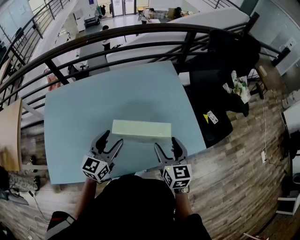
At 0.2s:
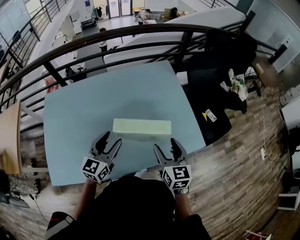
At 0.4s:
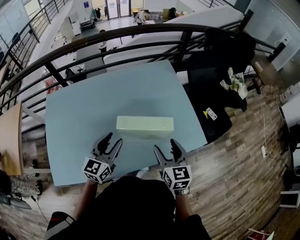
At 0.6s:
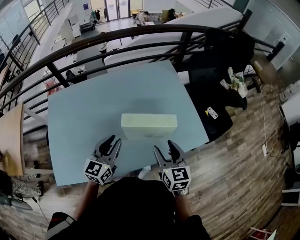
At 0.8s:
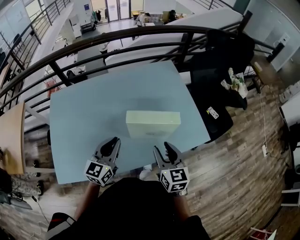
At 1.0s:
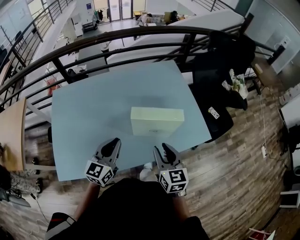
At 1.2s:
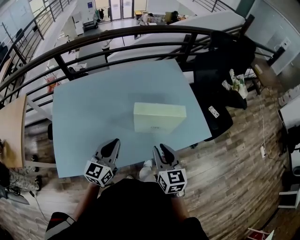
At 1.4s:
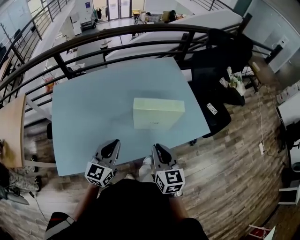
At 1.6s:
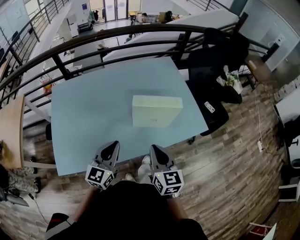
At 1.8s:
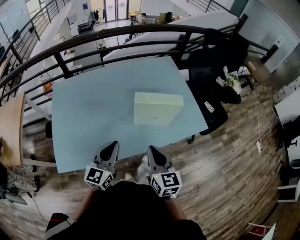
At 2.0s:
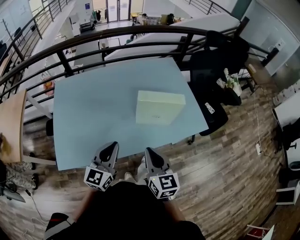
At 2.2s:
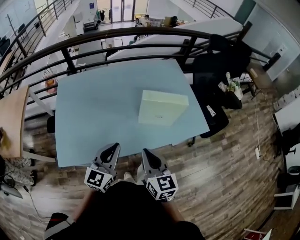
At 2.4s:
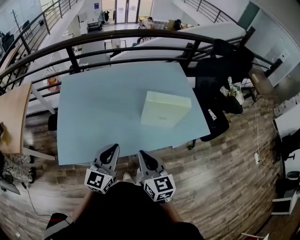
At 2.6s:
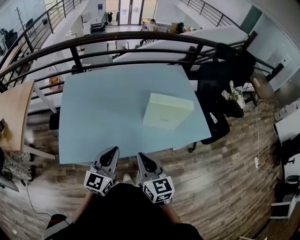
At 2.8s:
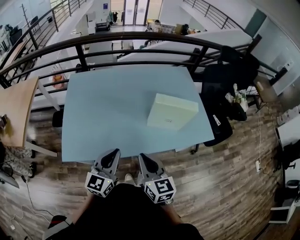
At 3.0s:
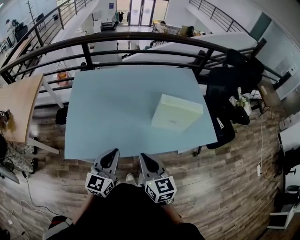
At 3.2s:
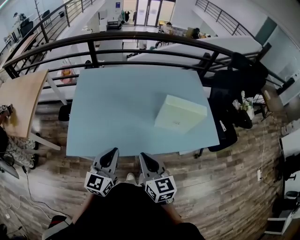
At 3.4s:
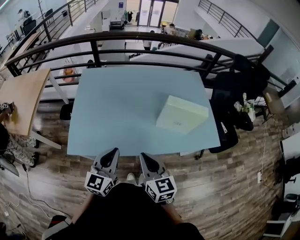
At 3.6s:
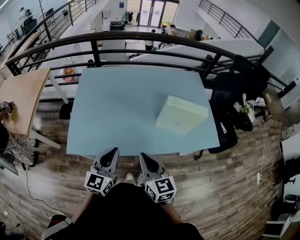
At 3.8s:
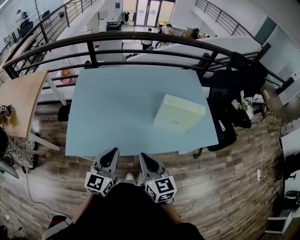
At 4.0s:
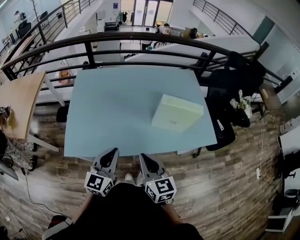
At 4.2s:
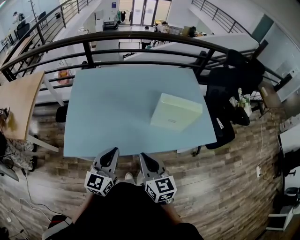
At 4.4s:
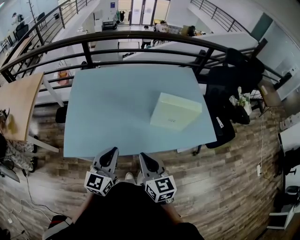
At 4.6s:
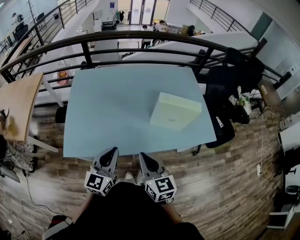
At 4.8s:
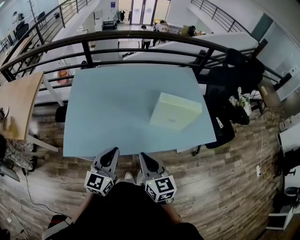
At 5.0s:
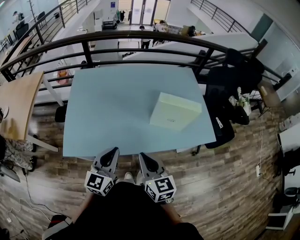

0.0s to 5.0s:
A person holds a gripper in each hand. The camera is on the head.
0.0s to 1.6s: The left gripper moves backward, approximately 15 cm, and closes up. The right gripper travels backward and to the left by roughly 20 cm, and closes its fingers.
1.6s to 3.4s: The grippers both shift to the left and backward by roughly 15 cm. The right gripper changes its angle by some 20 degrees.
3.4s to 5.0s: The grippers stay close to where they were, moving slightly.

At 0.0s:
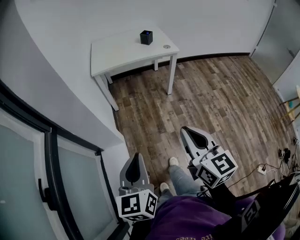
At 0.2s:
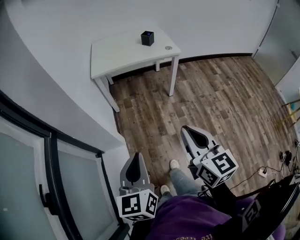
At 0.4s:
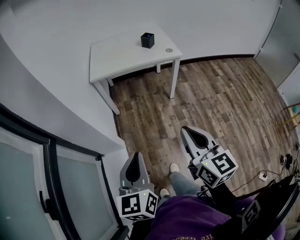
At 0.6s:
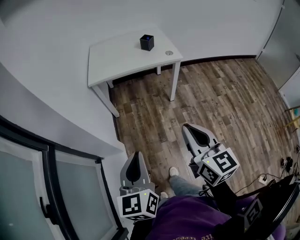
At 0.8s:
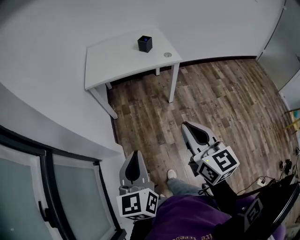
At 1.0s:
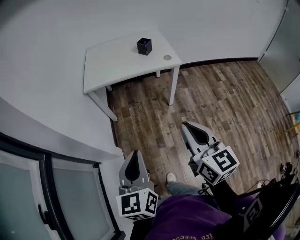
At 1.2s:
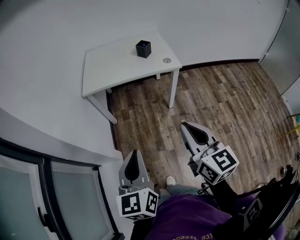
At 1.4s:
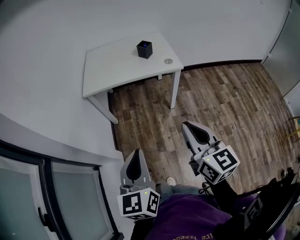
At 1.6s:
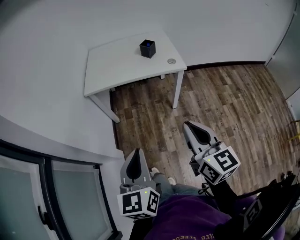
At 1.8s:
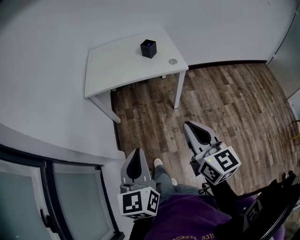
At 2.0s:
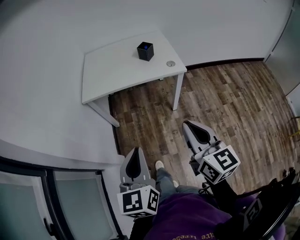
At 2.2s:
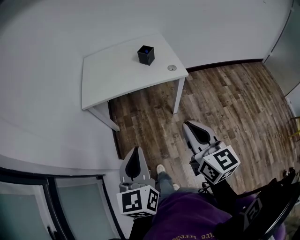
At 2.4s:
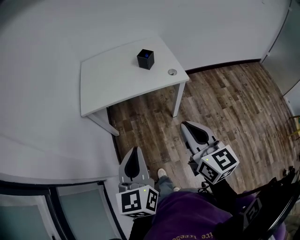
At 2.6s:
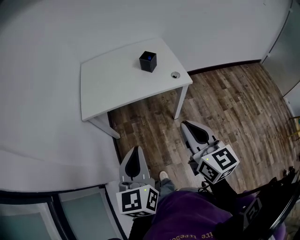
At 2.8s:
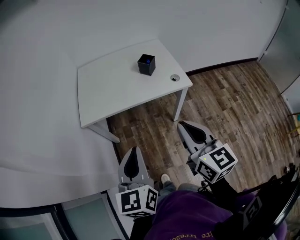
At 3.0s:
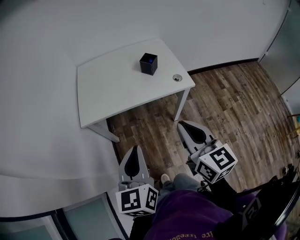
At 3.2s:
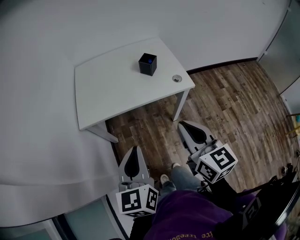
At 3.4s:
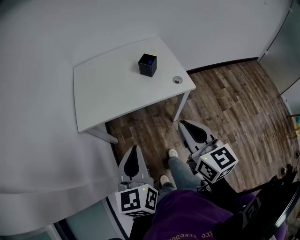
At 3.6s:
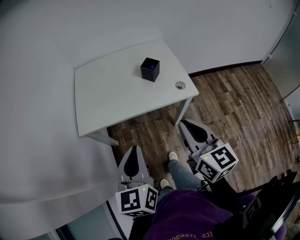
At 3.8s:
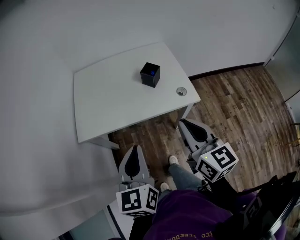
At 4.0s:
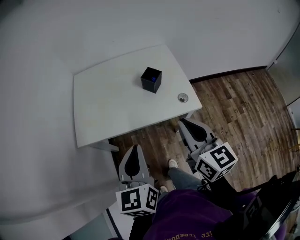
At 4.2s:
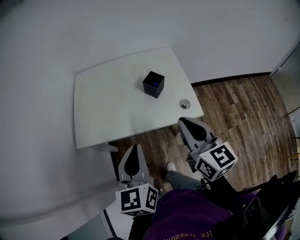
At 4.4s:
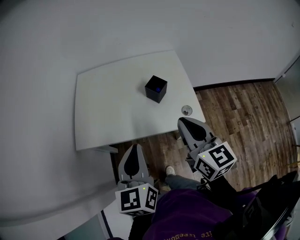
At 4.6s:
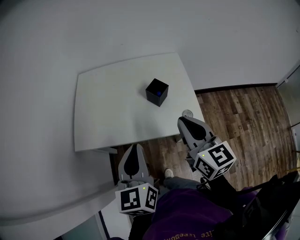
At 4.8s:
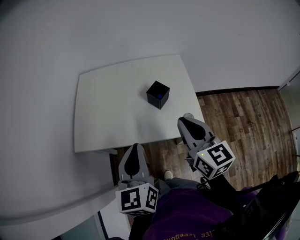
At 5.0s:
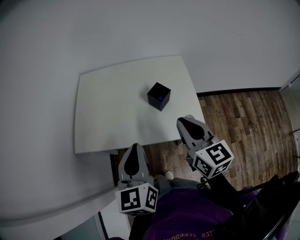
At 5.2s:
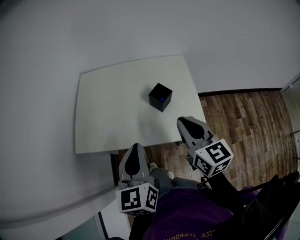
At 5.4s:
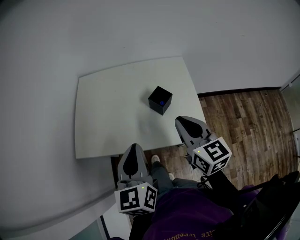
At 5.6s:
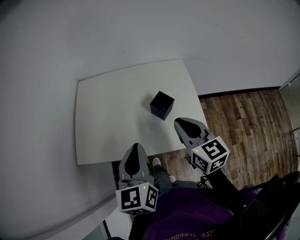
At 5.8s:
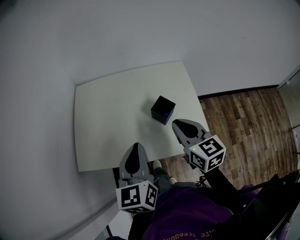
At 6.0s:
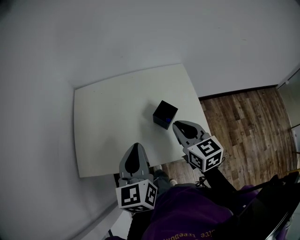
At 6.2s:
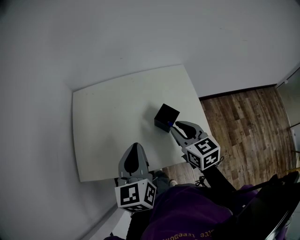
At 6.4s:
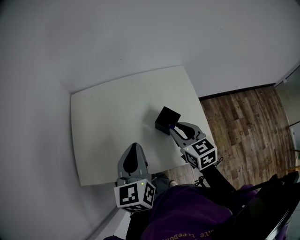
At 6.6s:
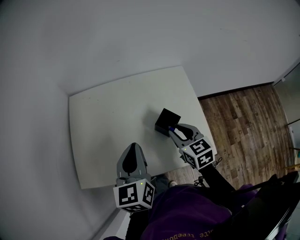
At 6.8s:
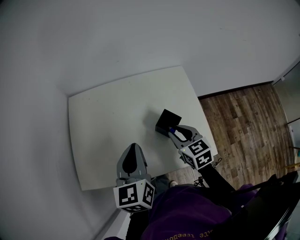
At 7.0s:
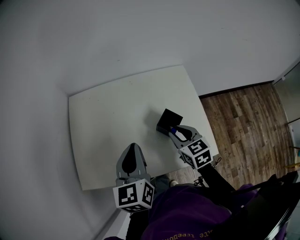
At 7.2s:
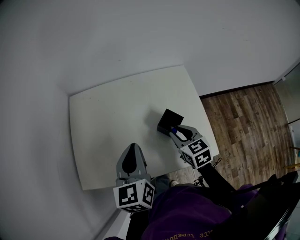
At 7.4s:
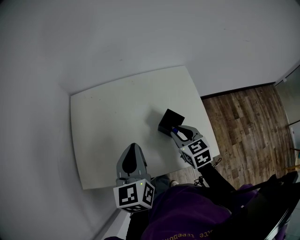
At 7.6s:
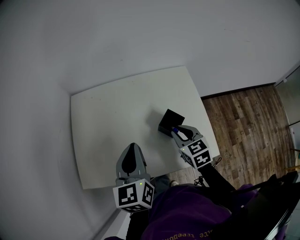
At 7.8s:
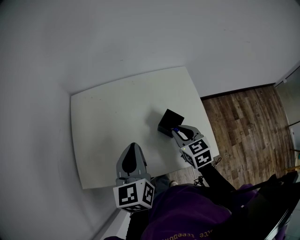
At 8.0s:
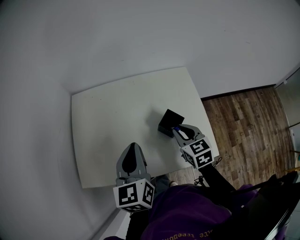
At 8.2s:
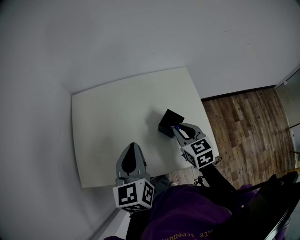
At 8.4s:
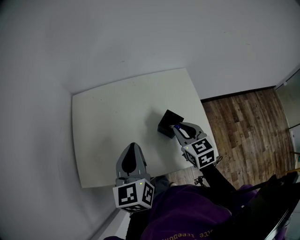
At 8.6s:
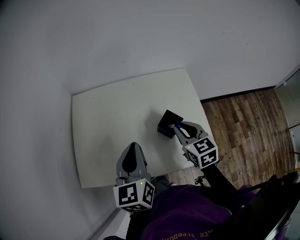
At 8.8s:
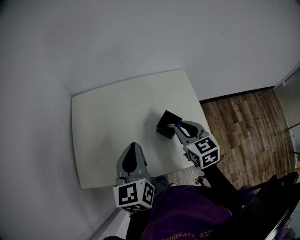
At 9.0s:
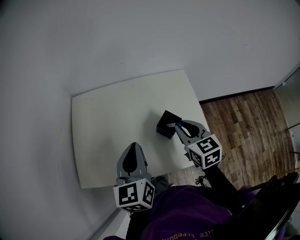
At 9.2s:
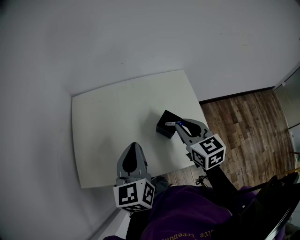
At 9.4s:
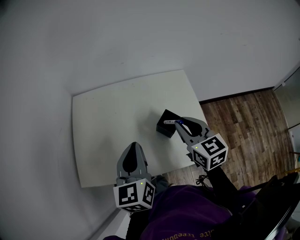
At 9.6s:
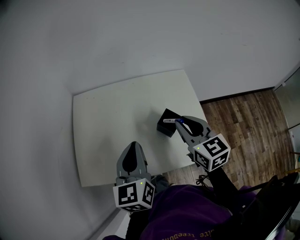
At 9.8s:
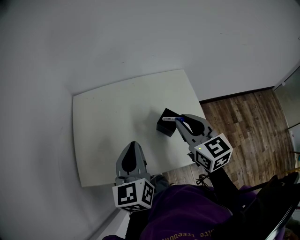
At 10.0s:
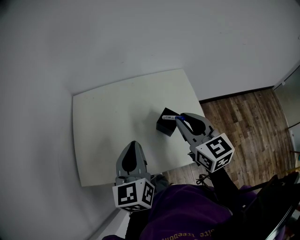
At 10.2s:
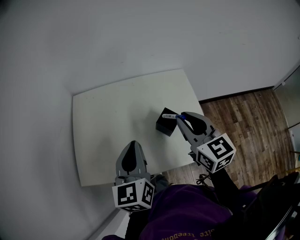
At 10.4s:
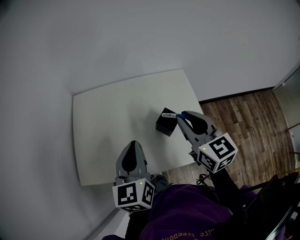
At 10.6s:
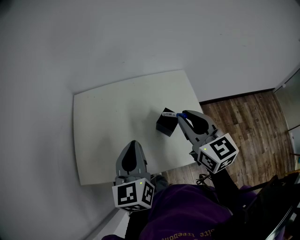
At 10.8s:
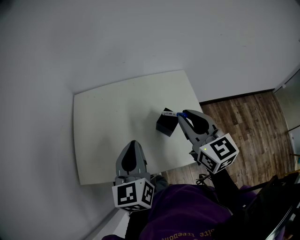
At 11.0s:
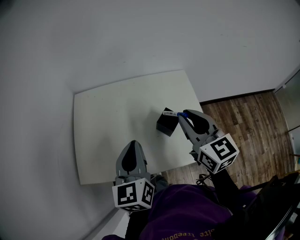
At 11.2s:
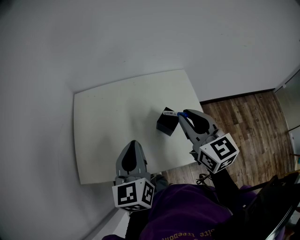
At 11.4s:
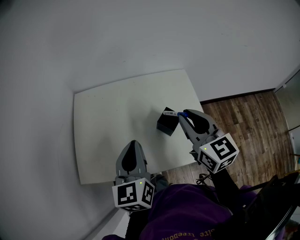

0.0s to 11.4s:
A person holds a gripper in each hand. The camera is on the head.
0.0s to 1.4s: Both grippers travel together forward and to the right, some 25 cm.
1.4s to 2.8s: Both grippers travel together forward, approximately 20 cm.
2.8s to 4.2s: Both grippers travel together forward, about 20 cm.
4.2s to 5.6s: Both grippers travel together forward, about 15 cm.
5.6s to 7.2s: The left gripper goes some 15 cm forward; the right gripper moves downward and forward, roughly 15 cm, swivels about 20 degrees, and opens its fingers.
7.2s to 8.6s: The grippers stay close to where they were, moving slightly.
8.6s to 10.0s: The right gripper goes some 10 cm upward.
10.0s to 11.4s: The grippers stay close to where they were, moving slightly.

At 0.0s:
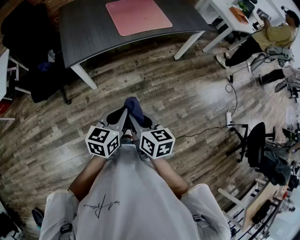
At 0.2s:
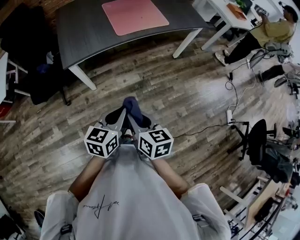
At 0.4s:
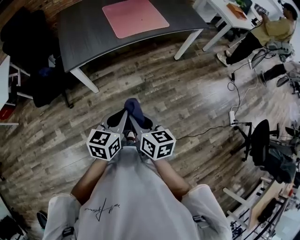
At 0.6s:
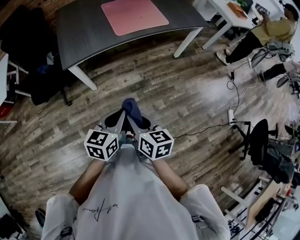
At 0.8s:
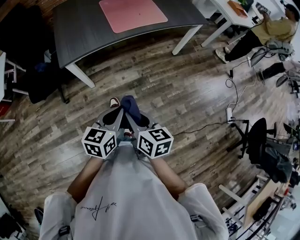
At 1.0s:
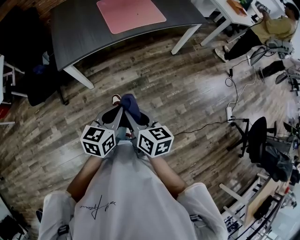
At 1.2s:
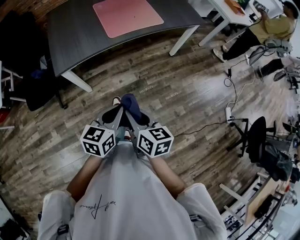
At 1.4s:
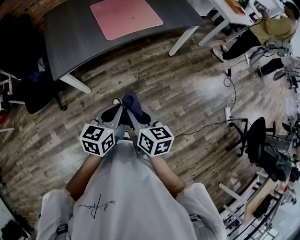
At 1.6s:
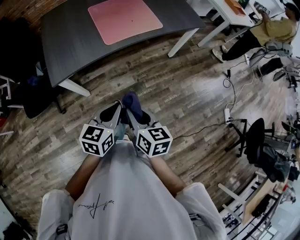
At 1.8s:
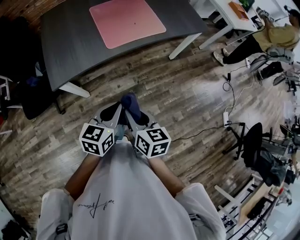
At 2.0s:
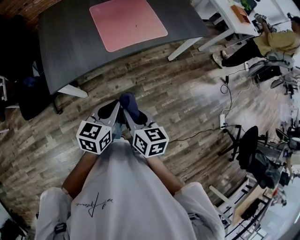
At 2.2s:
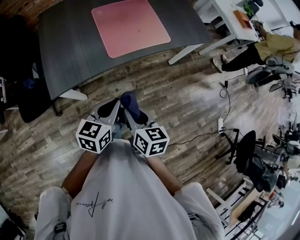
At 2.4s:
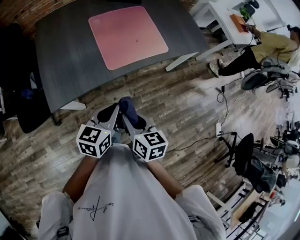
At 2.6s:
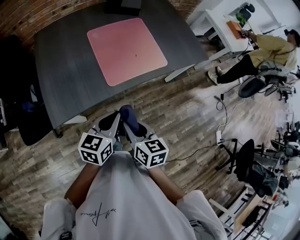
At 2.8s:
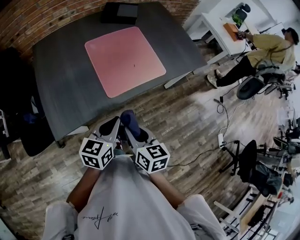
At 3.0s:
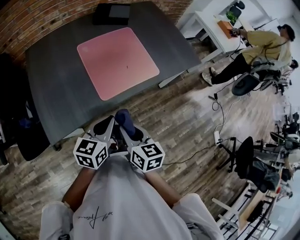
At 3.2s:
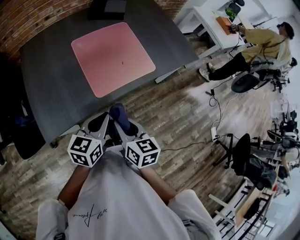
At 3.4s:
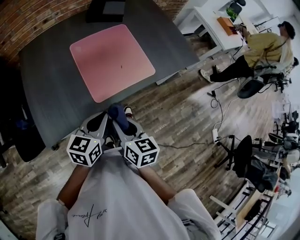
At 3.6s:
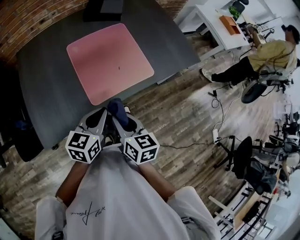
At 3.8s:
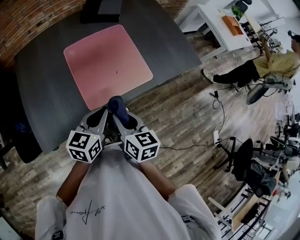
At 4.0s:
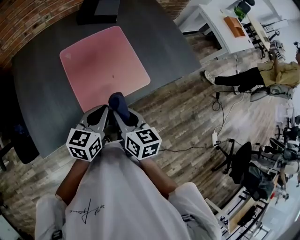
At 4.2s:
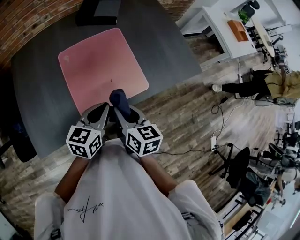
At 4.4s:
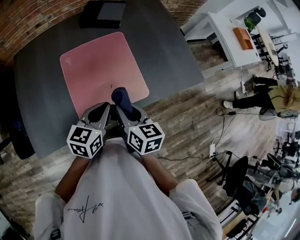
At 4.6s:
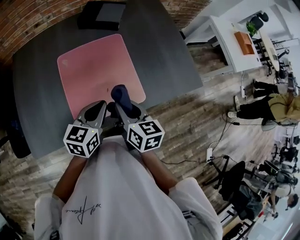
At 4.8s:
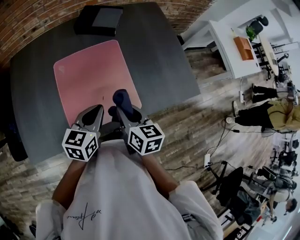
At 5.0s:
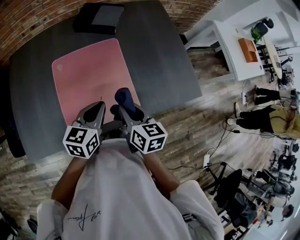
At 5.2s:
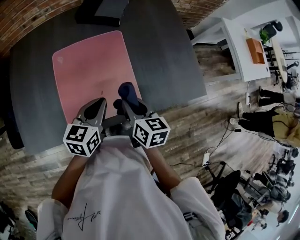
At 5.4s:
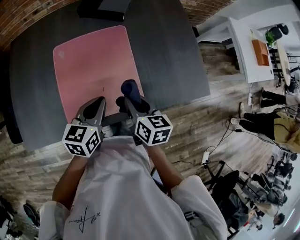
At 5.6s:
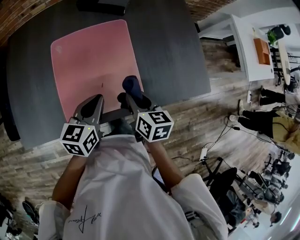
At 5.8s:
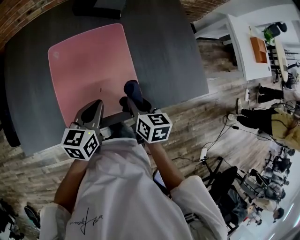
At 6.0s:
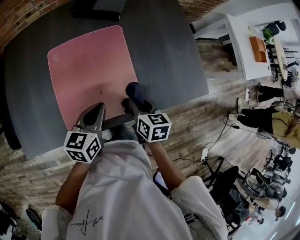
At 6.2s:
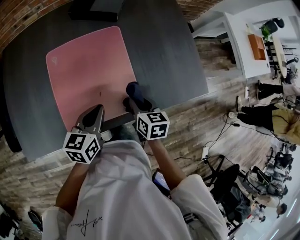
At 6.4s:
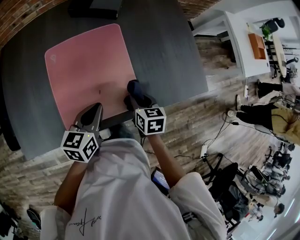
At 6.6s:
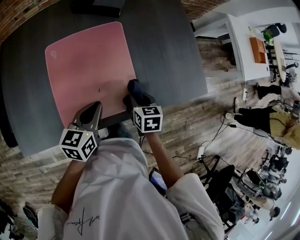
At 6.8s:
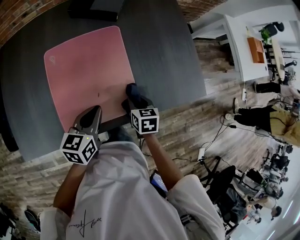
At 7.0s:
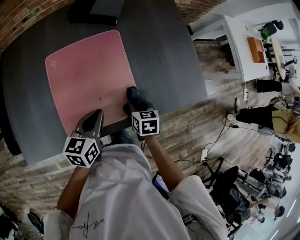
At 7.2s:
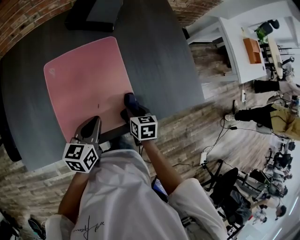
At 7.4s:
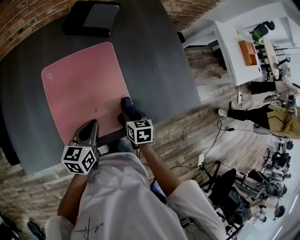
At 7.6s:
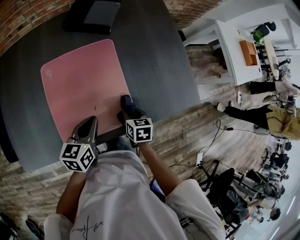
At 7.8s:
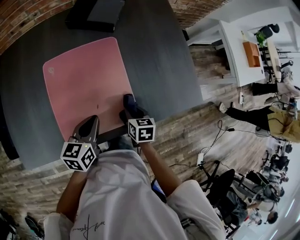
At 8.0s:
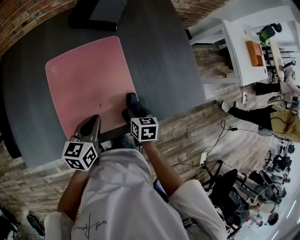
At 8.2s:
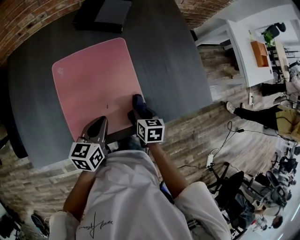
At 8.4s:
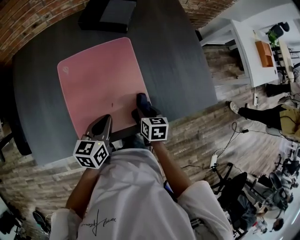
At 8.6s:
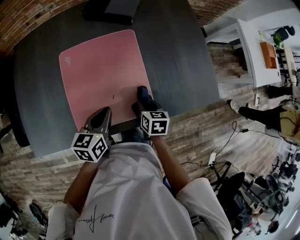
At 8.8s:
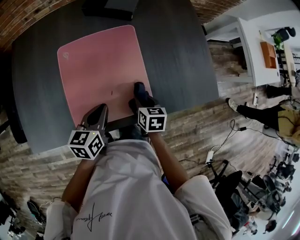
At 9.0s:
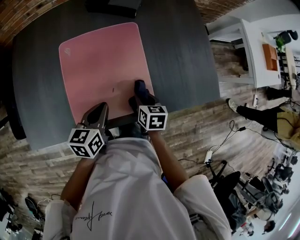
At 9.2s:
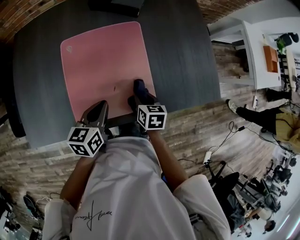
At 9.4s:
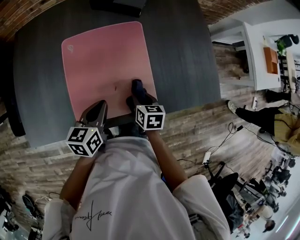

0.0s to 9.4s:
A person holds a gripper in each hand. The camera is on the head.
0.0s to 1.6s: Both grippers travel together forward, roughly 10 cm.
1.6s to 3.2s: The two grippers go approximately 25 cm forward.
3.2s to 4.8s: Both grippers travel together forward and to the right, approximately 30 cm.
4.8s to 6.2s: The right gripper is displaced downward and to the right by about 10 cm. The left gripper goes approximately 5 cm downward.
6.2s to 7.8s: The right gripper travels downward by roughly 5 cm.
7.8s to 9.4s: The right gripper heads to the left, covering about 5 cm.
